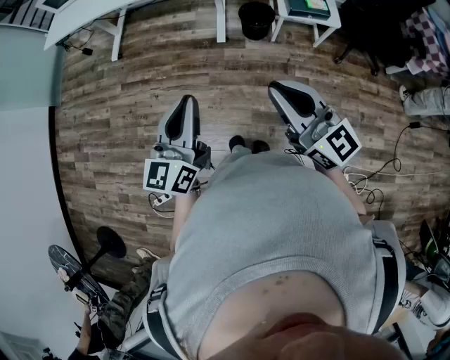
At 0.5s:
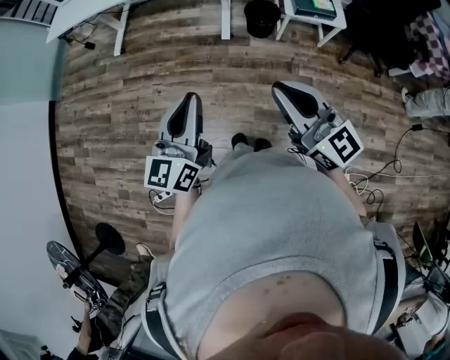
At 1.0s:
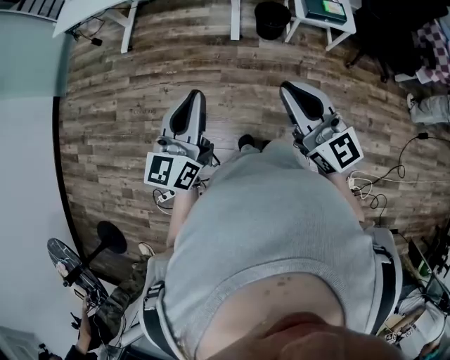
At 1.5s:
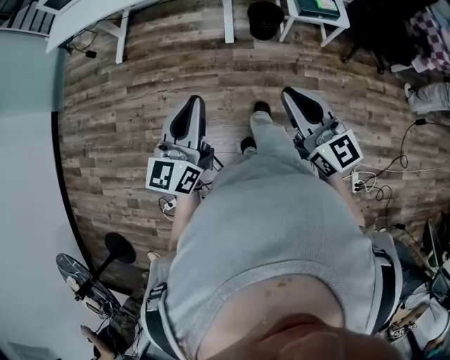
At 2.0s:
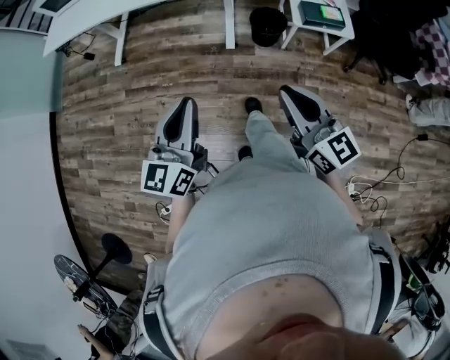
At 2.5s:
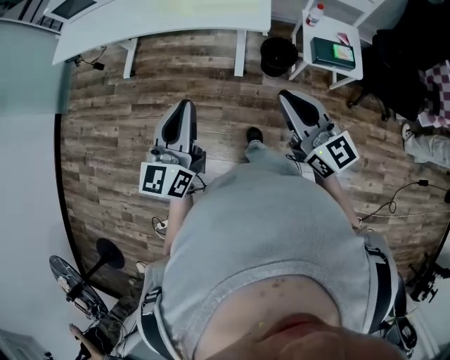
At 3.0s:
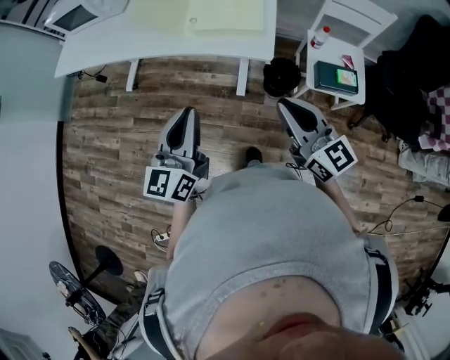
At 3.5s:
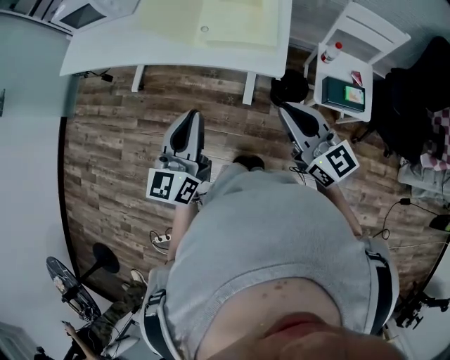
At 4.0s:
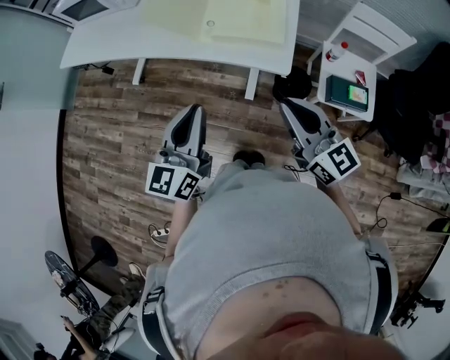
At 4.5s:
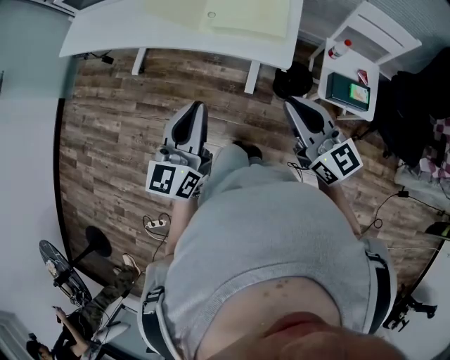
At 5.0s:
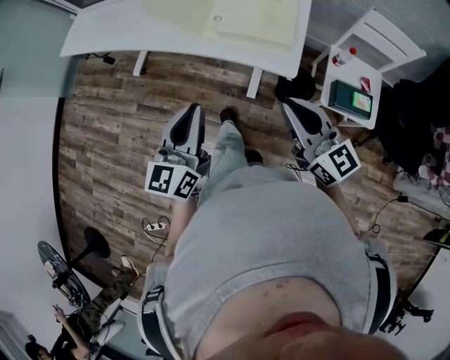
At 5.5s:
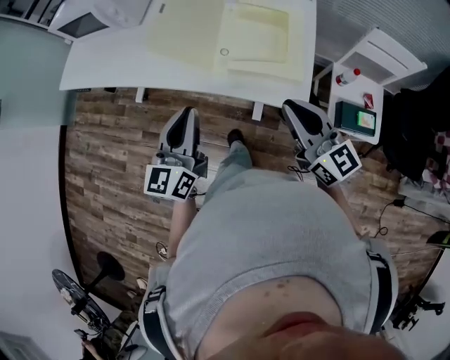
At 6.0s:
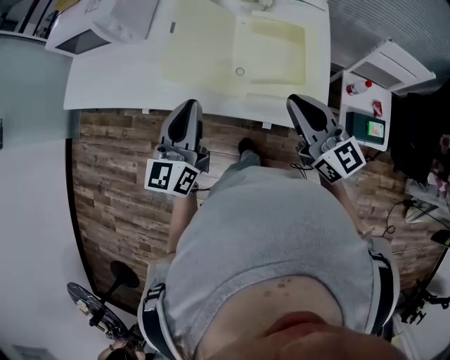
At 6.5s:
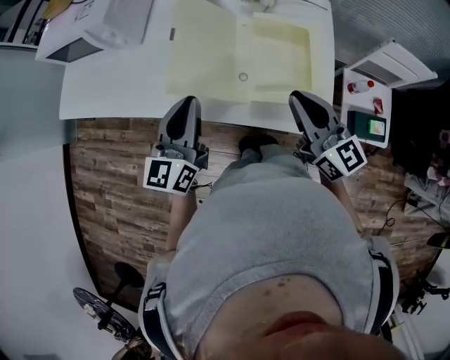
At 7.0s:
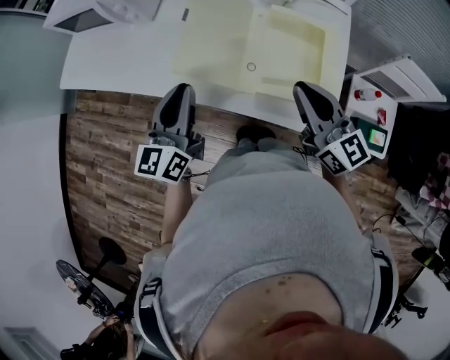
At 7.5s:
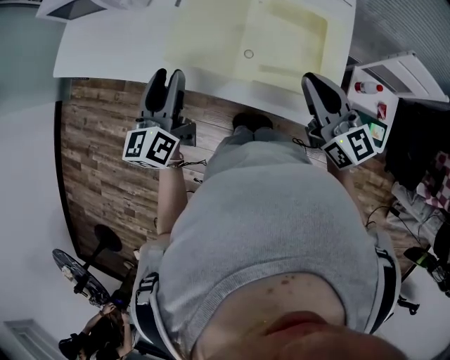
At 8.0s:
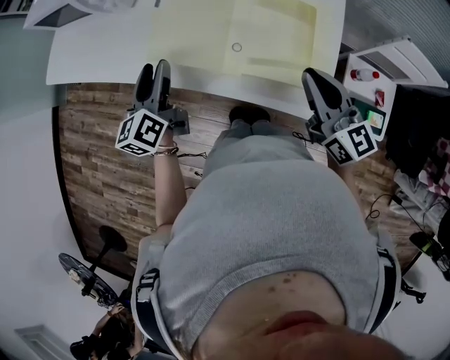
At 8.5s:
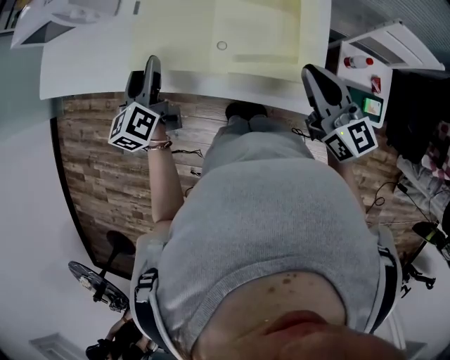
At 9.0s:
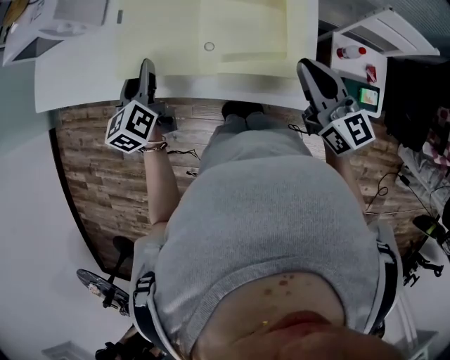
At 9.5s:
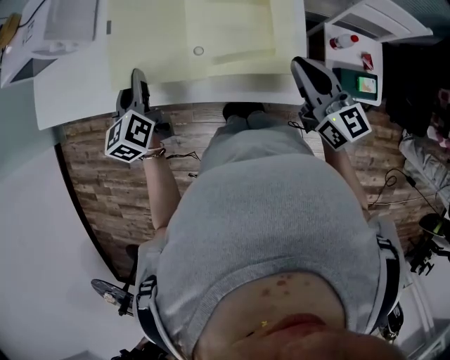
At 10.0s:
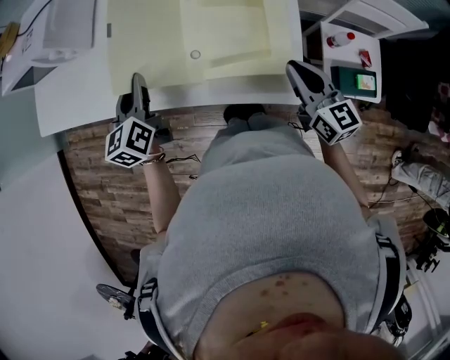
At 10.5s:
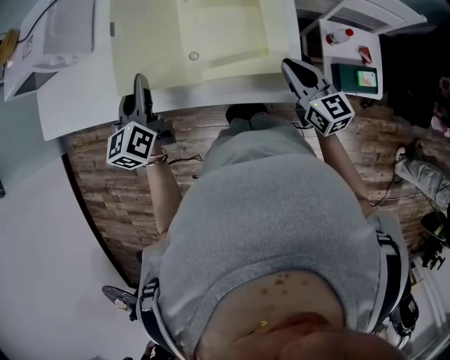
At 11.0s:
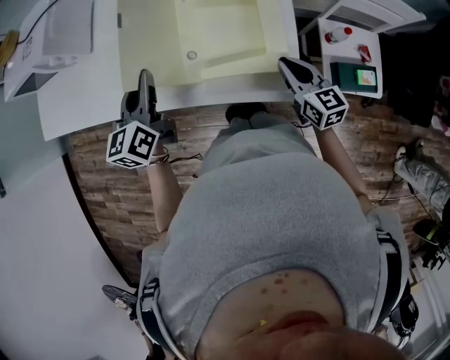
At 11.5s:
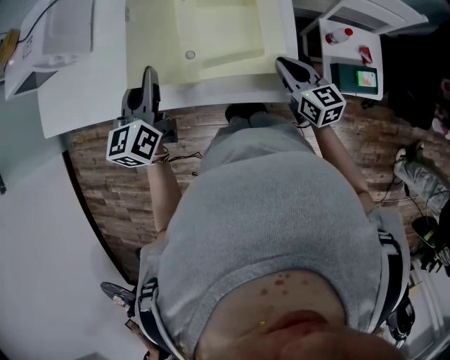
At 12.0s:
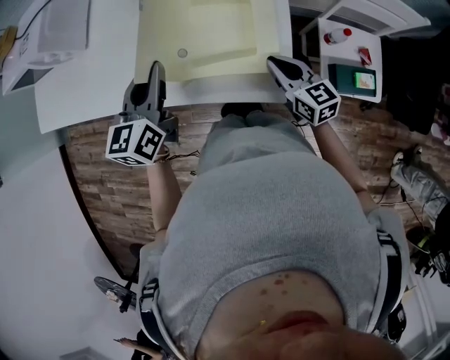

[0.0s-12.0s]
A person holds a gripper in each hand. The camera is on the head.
0.0s to 2.0s: The right gripper moves forward and downward, approximately 10 cm. The left gripper goes about 10 cm forward.
2.0s to 4.0s: The two grippers go roughly 30 cm forward.
4.0s to 6.0s: The two grippers go some 25 cm forward.
6.0s to 8.0s: The left gripper moves forward, downward and to the left, some 15 cm, rotates roughly 30 degrees, and opens. Meanwhile the right gripper shifts by approximately 5 cm.
8.0s to 10.0s: The left gripper moves to the right, about 5 cm, and closes up. The right gripper travels downward and to the right by roughly 10 cm.
10.0s to 12.0s: The left gripper heads to the right, covering some 10 cm, while the right gripper moves downward, some 5 cm.

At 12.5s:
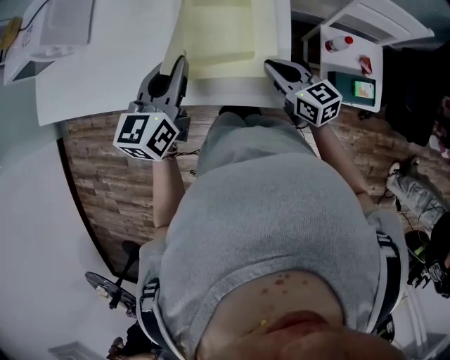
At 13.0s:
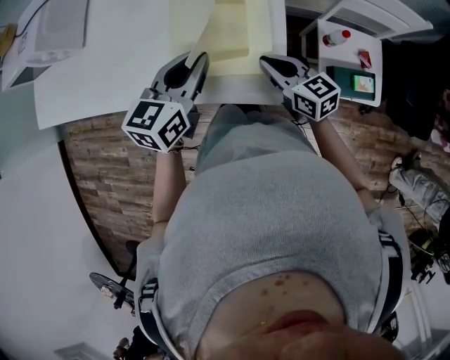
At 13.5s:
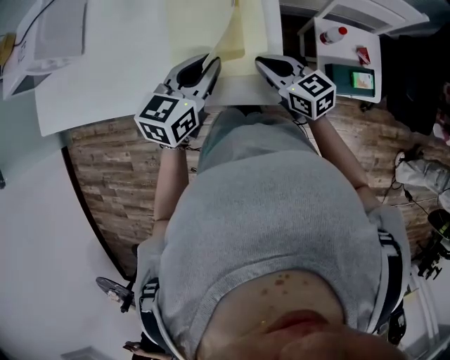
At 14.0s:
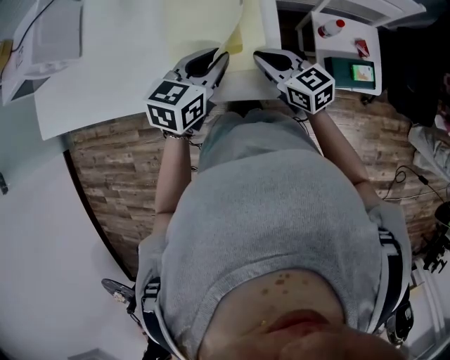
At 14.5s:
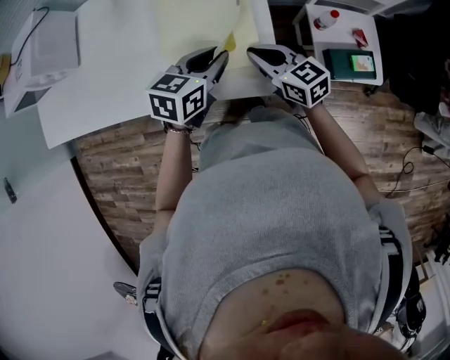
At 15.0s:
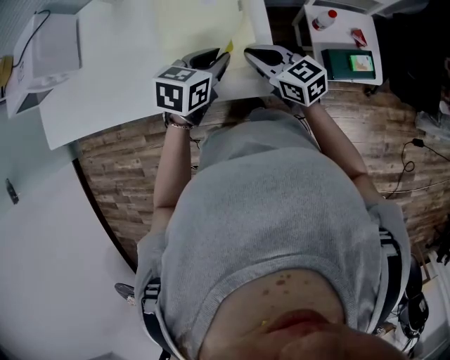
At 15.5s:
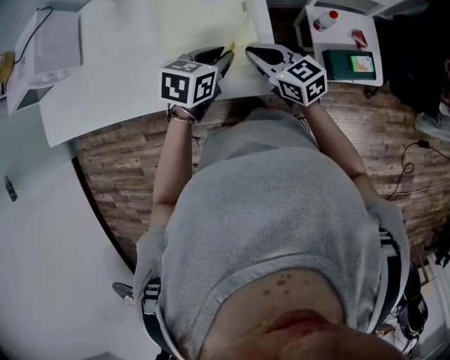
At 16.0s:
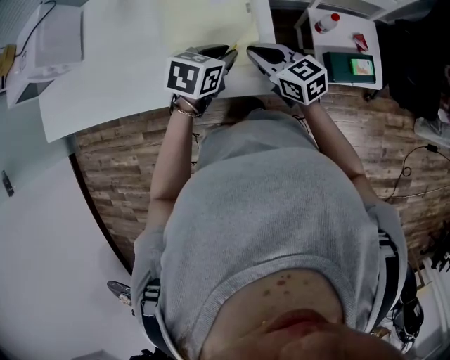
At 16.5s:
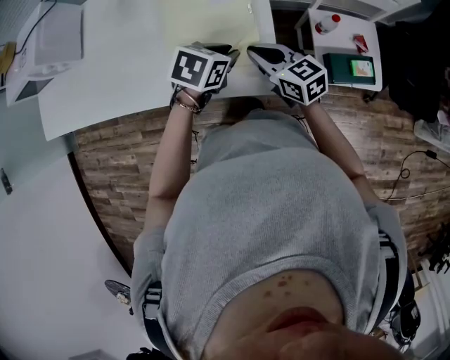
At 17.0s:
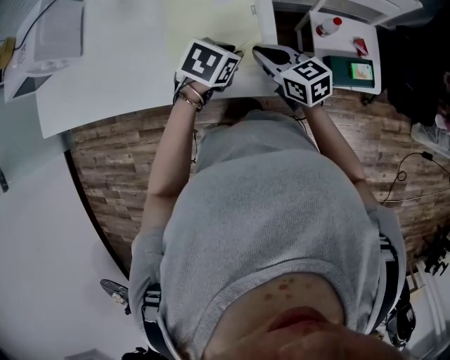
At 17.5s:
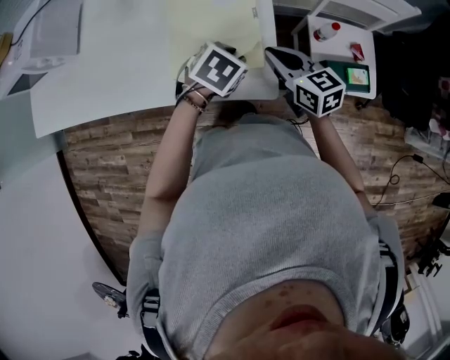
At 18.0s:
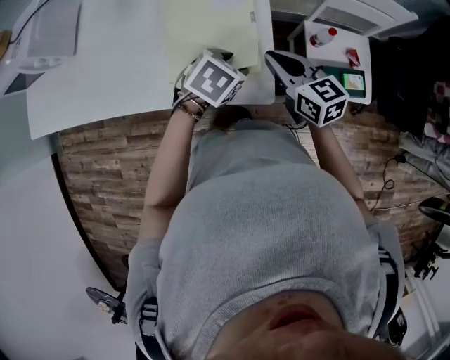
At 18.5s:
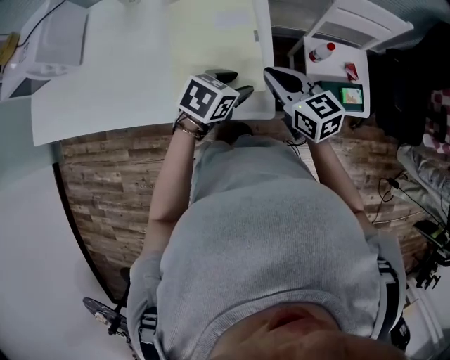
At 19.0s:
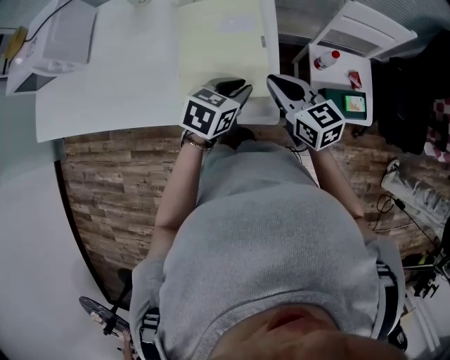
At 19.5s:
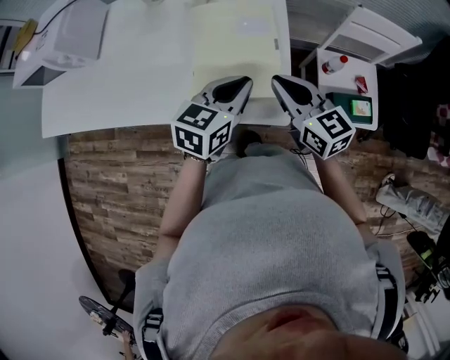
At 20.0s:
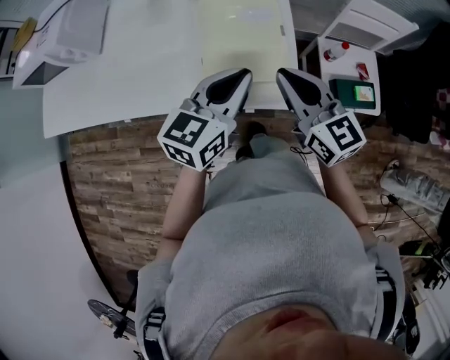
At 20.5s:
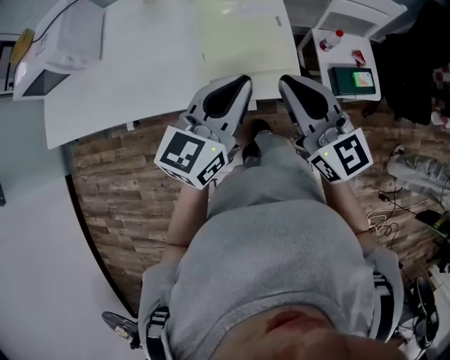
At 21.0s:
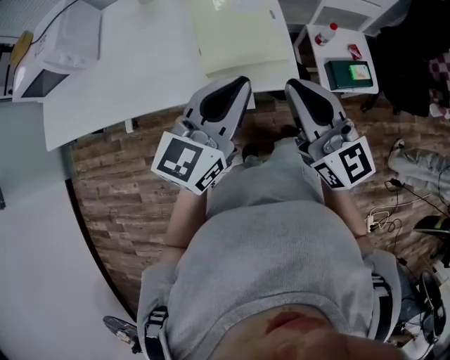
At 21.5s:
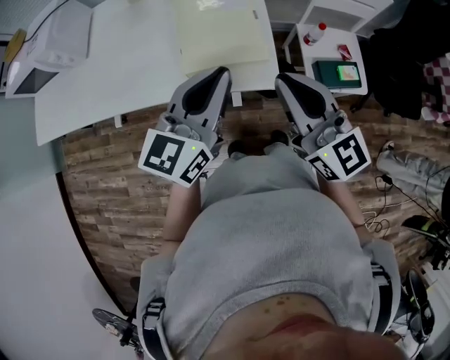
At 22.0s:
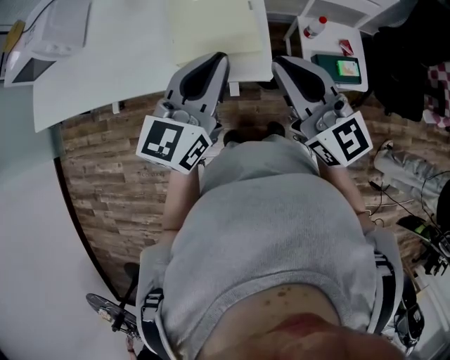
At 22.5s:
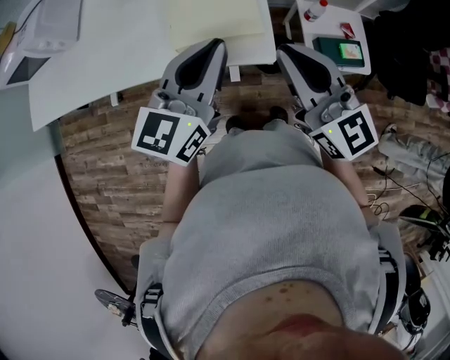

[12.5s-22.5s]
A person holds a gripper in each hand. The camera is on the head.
12.5s to 14.5s: The left gripper goes roughly 15 cm to the right and downward, and changes its angle by approximately 30 degrees.
14.5s to 16.5s: The left gripper rotates some 20 degrees.
16.5s to 18.5s: The right gripper moves about 5 cm; the left gripper opens.
18.5s to 20.5s: The grippers both shift upward, backward and to the left by approximately 20 cm. The right gripper changes its angle by about 20 degrees; the left gripper tips its fingers upward by approximately 40 degrees, and closes its fingers.
20.5s to 22.5s: The right gripper moves to the right, roughly 5 cm.

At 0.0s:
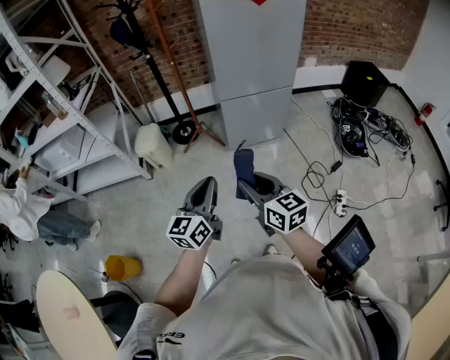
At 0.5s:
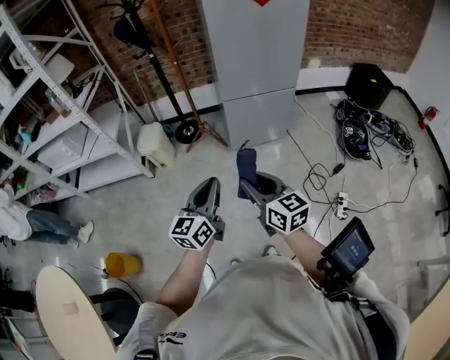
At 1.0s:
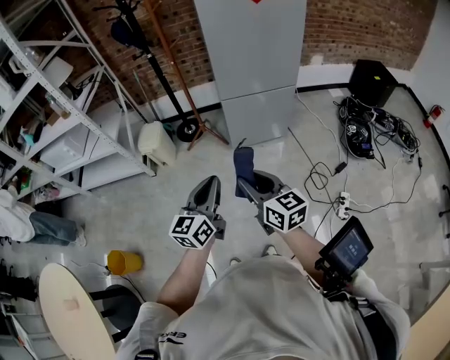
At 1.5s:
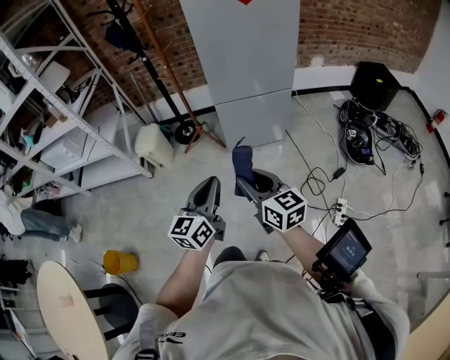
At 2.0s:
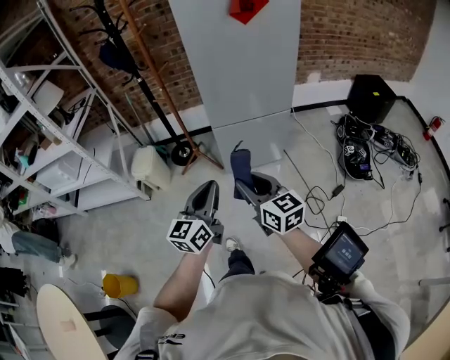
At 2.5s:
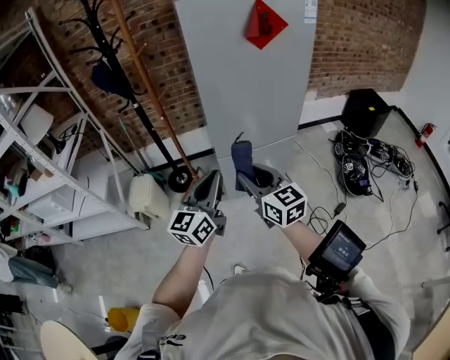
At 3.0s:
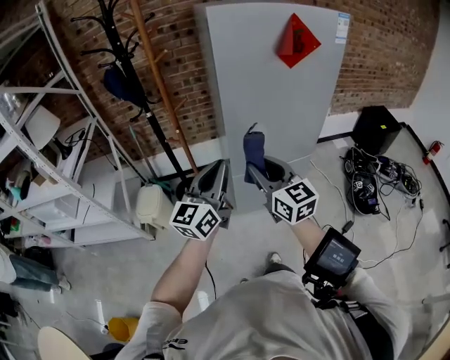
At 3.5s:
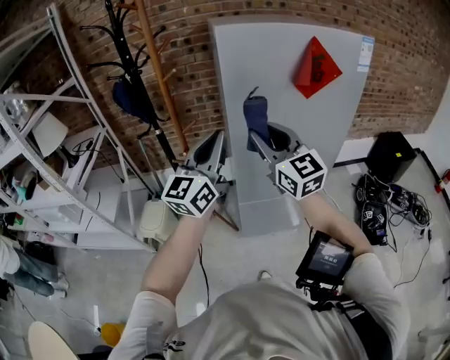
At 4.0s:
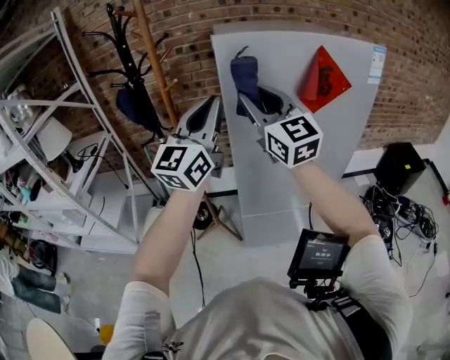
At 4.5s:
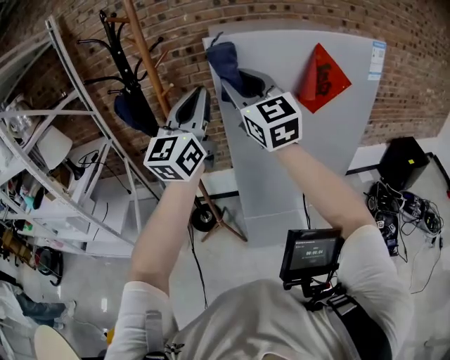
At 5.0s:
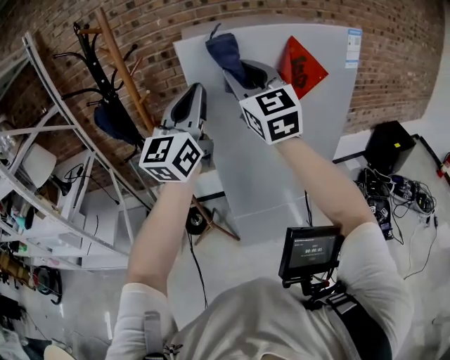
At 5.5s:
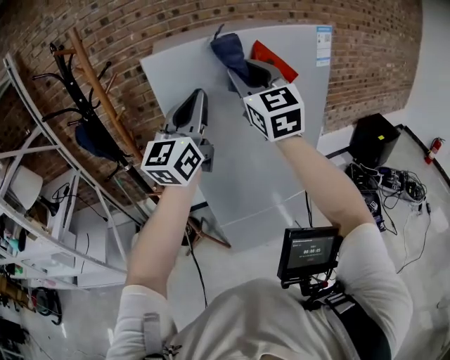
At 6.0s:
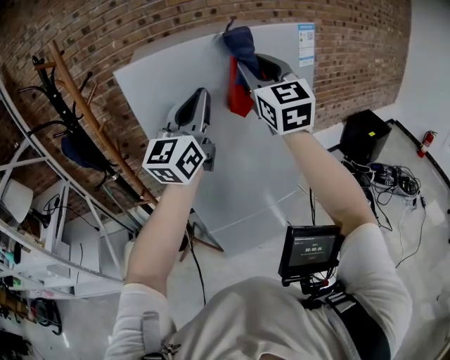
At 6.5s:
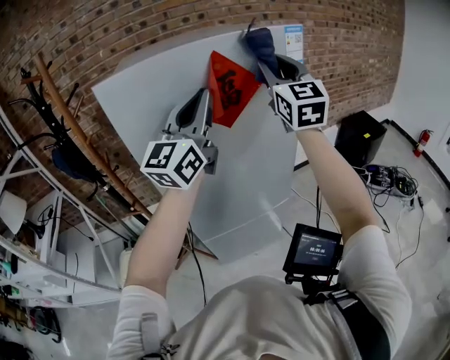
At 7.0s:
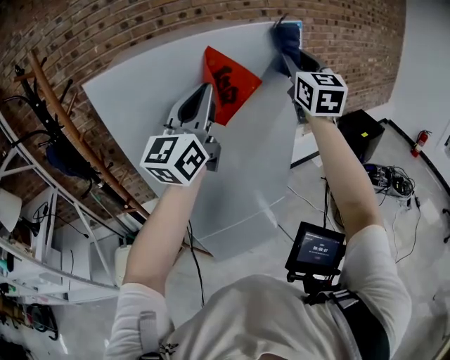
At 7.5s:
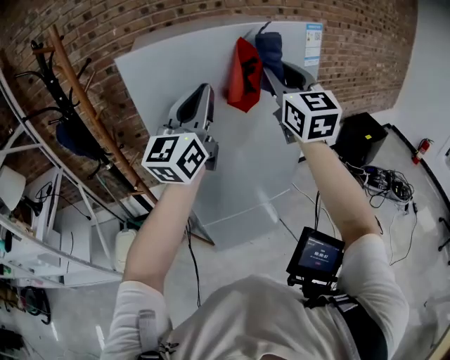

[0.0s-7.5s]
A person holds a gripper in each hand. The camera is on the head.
0.0s to 2.0s: The left gripper is displaced to the right and forward by roughly 15 cm; the right gripper shifts some 20 cm forward and to the right.
2.0s to 4.0s: Both grippers are carried forward, about 50 cm. Both grippers travel together upward, approximately 30 cm. The left gripper rotates approximately 30 degrees. The right gripper turns by approximately 40 degrees.
4.0s to 5.5s: The right gripper is displaced to the right and upward by approximately 15 cm, and changes its angle by approximately 20 degrees. The left gripper travels to the right by some 10 cm.
5.5s to 7.5s: The right gripper shifts some 10 cm to the right. Meanwhile the left gripper shifts approximately 5 cm to the right.
